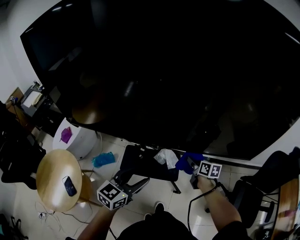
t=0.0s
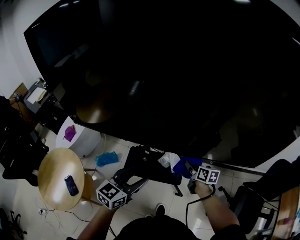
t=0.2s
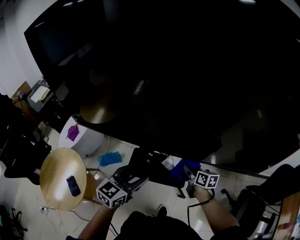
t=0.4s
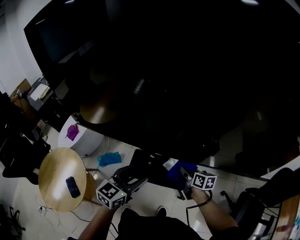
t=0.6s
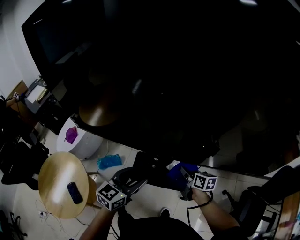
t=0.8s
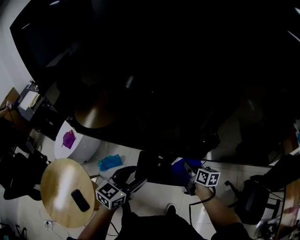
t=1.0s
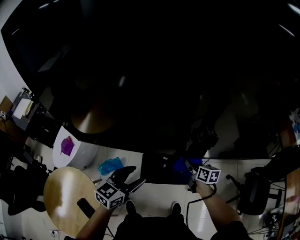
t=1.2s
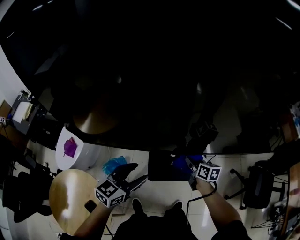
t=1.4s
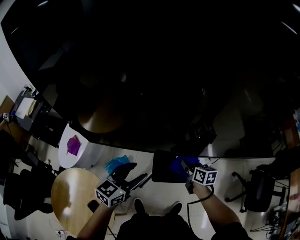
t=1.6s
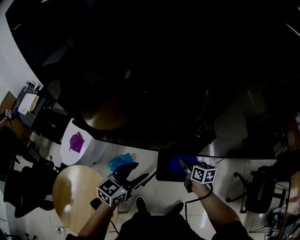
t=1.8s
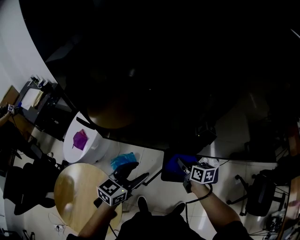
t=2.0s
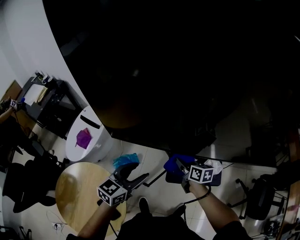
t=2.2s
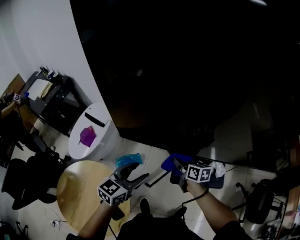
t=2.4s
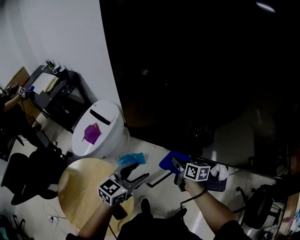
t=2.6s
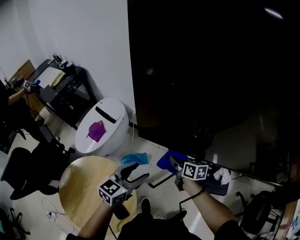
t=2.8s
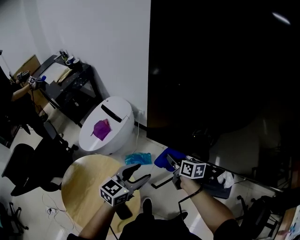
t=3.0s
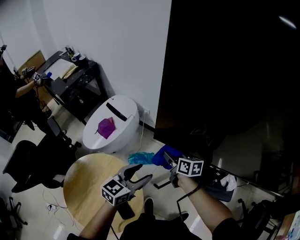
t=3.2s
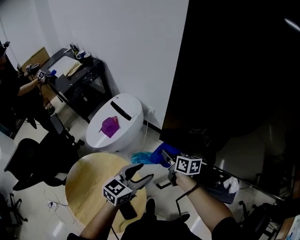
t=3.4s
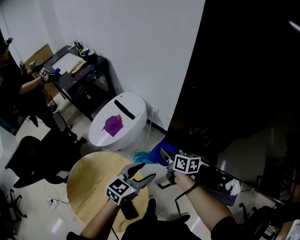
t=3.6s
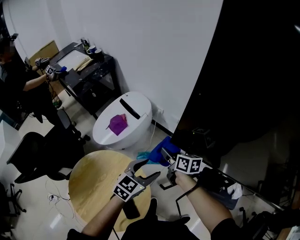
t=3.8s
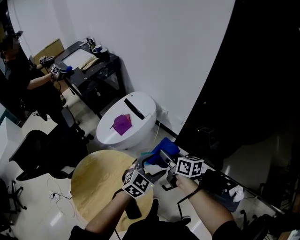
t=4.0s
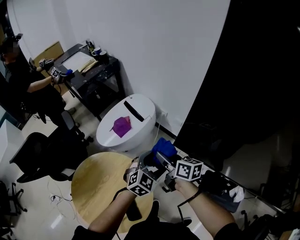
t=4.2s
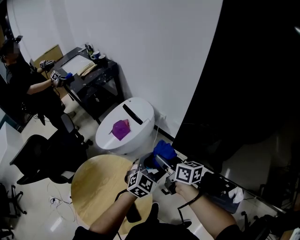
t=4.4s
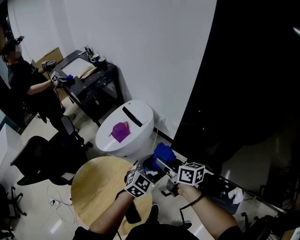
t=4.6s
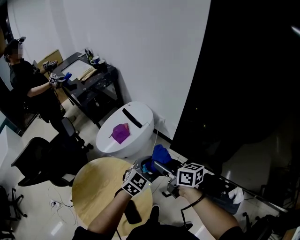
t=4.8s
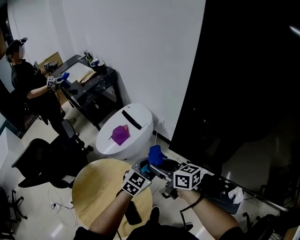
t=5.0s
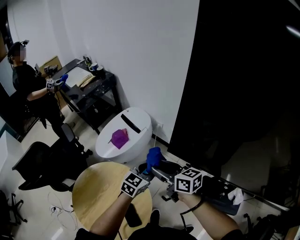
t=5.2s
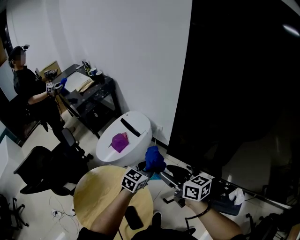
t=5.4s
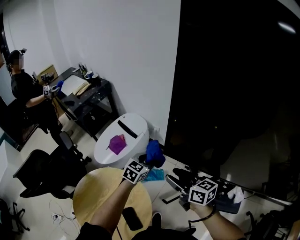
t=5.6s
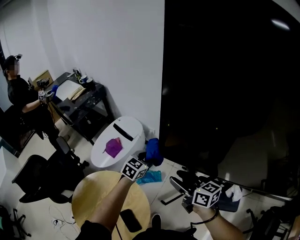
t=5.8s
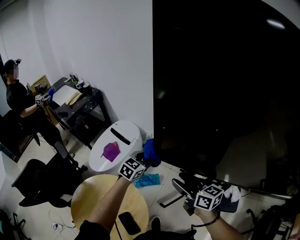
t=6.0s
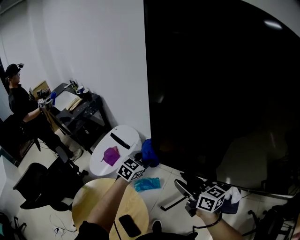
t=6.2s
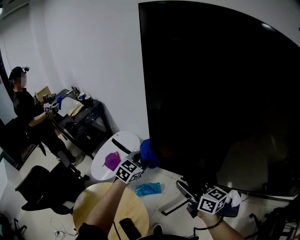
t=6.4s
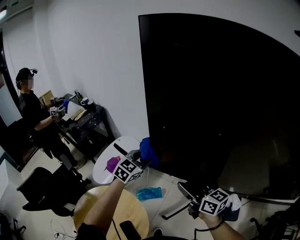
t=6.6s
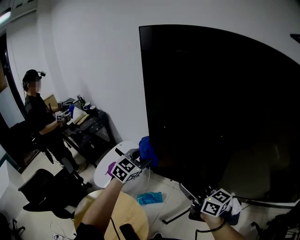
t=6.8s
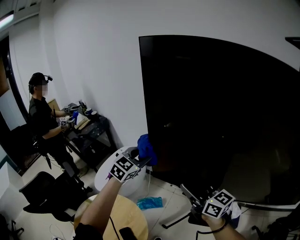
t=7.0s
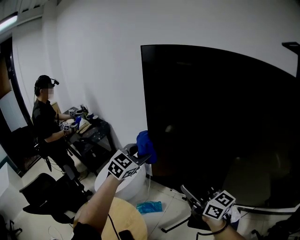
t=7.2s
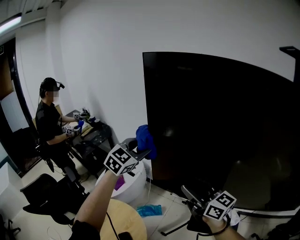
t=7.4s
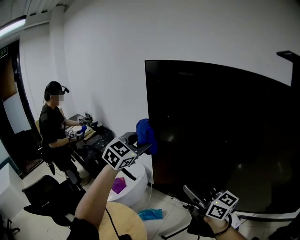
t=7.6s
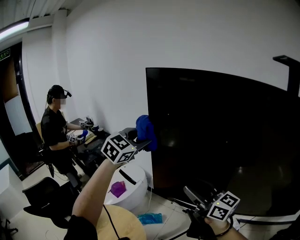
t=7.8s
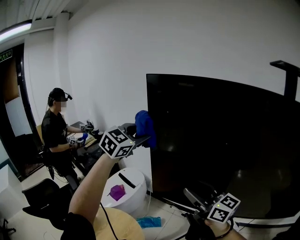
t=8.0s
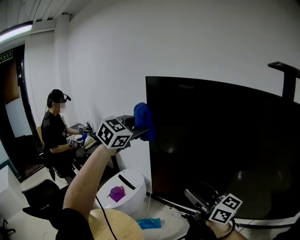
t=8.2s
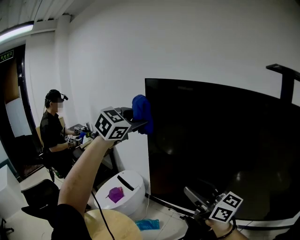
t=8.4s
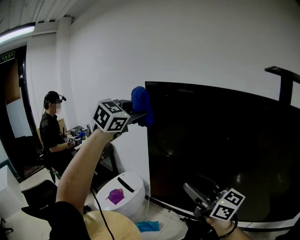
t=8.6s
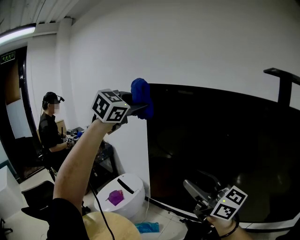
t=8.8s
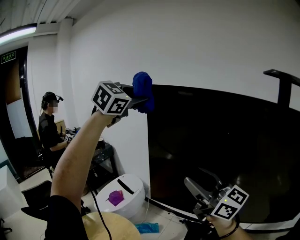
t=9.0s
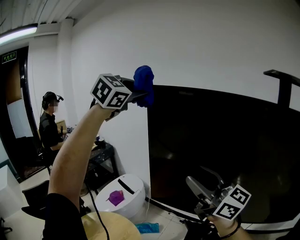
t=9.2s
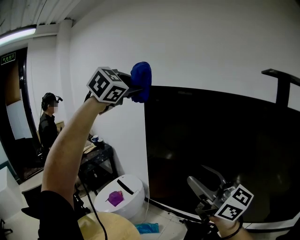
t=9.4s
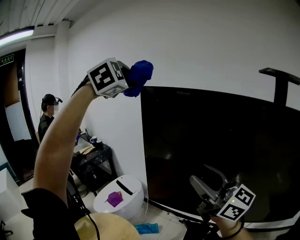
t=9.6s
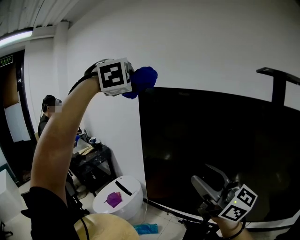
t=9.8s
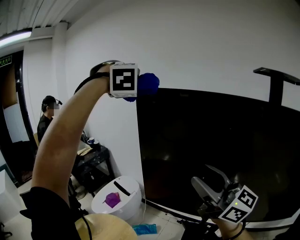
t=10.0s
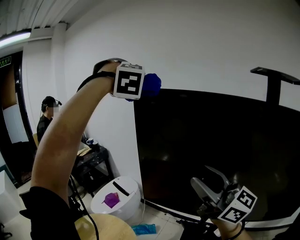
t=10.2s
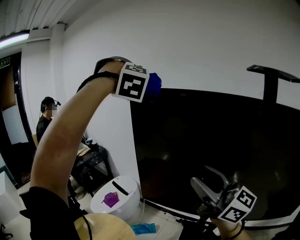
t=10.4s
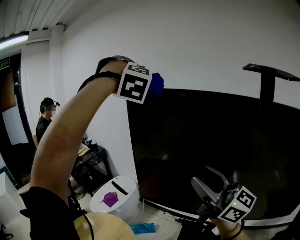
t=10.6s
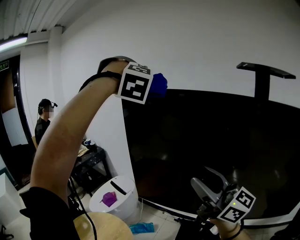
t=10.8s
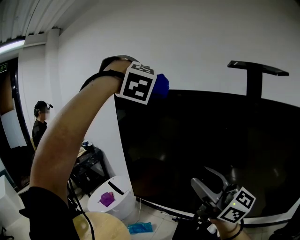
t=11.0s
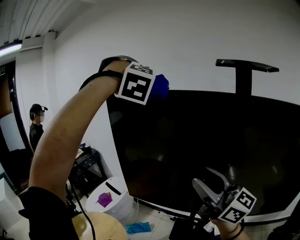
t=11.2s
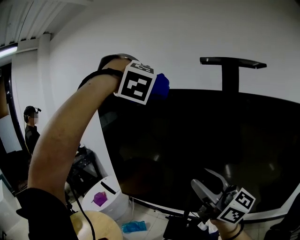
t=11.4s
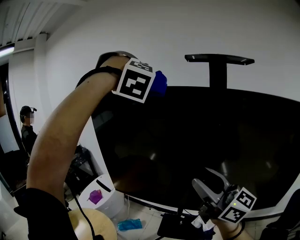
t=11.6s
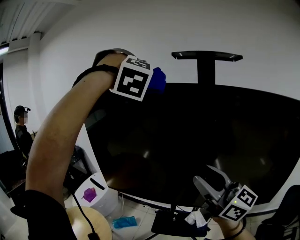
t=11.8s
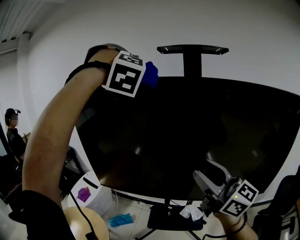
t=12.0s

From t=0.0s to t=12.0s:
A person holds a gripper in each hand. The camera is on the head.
From t=0.0s to t=1.6s: Both grippers travel together to the left, some 30 cm.
From t=1.6s to t=3.0s: Both grippers travel together to the left, some 30 cm. The right gripper turns by roughly 20 degrees.
From t=3.0s to t=4.4s: The right gripper shifts some 20 cm to the left, and turns by approximately 20 degrees; the left gripper moves forward, roughly 10 cm, and rotates approximately 30 degrees.
From t=4.4s to t=6.0s: The right gripper is displaced to the right, backward and upward by about 20 cm, while the left gripper goes approximately 10 cm forward, and closes.
From t=6.0s to t=7.6s: The right gripper travels upward by roughly 20 cm, and rotates about 30 degrees; the left gripper shifts about 35 cm upward, and swivels some 30 degrees.
From t=7.6s to t=9.0s: The left gripper shifts roughly 25 cm upward. Meanwhile the right gripper shifts some 15 cm upward.
From t=9.0s to t=10.4s: The left gripper moves to the right, approximately 5 cm, and rotates around the line of its fingers by roughly 60 degrees, clockwise from behind. The right gripper goes roughly 5 cm backward.
From t=10.4s to t=12.0s: Both grippers travel together backward and to the right, roughly 30 cm.

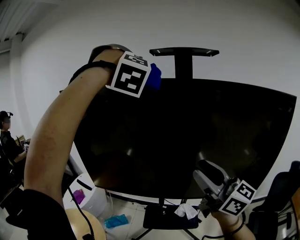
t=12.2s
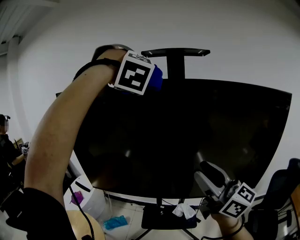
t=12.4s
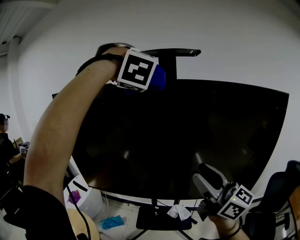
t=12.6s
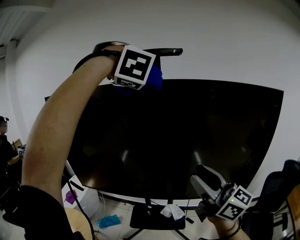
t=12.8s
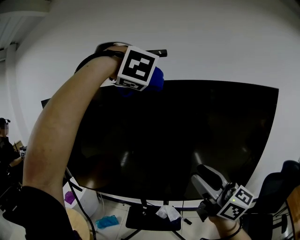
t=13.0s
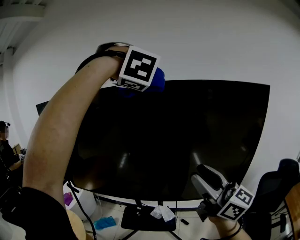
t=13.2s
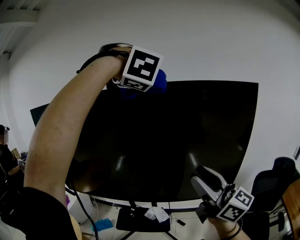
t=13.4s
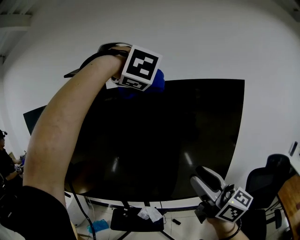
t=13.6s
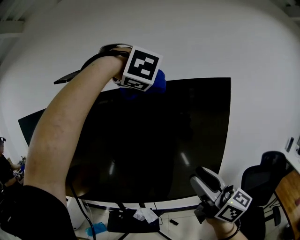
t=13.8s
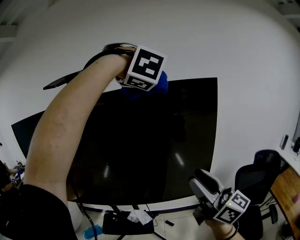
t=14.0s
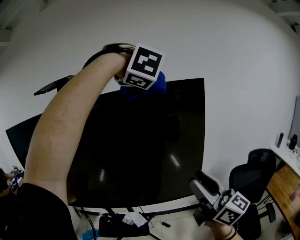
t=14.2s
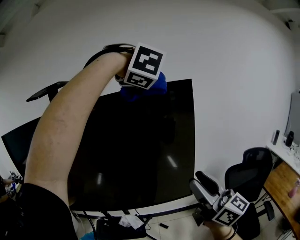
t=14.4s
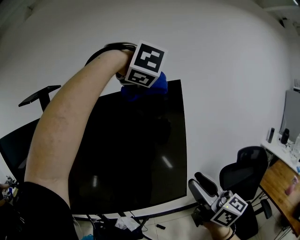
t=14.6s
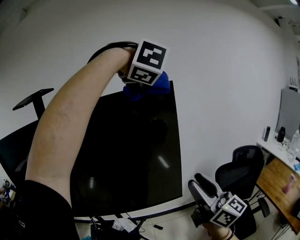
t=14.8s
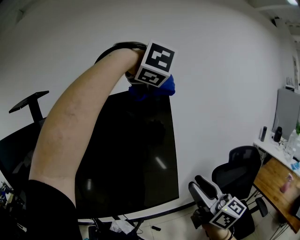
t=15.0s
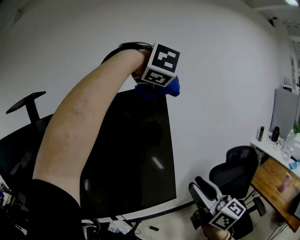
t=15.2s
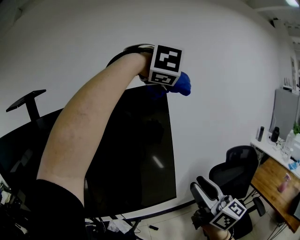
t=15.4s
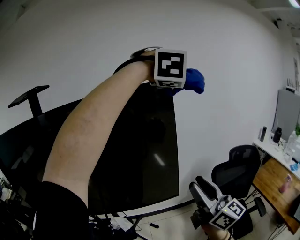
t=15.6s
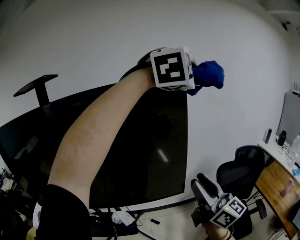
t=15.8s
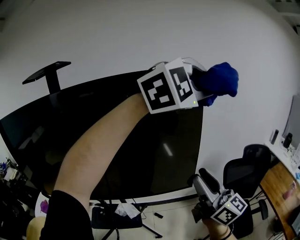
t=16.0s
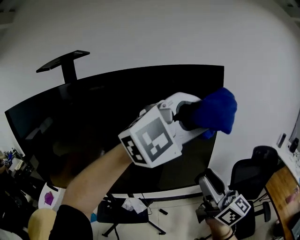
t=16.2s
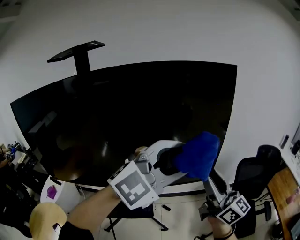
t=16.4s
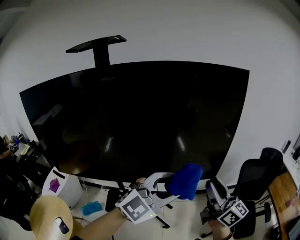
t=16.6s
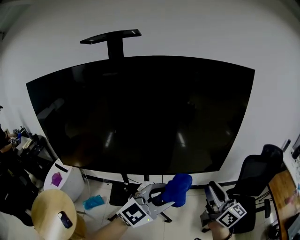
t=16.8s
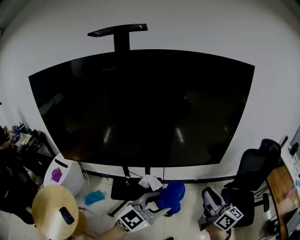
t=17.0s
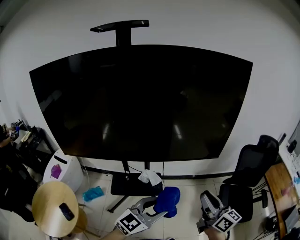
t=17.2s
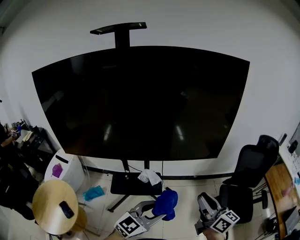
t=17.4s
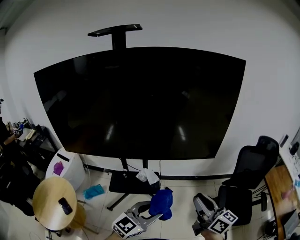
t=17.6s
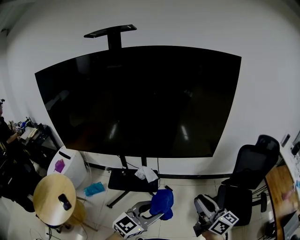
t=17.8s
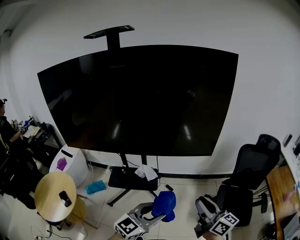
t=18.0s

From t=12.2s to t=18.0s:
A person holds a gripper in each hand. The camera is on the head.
From t=12.2s to t=13.6s: Both grippers travel together to the right and backward, approximately 35 cm.
From t=13.6s to t=15.0s: The left gripper heads to the right, covering about 35 cm. The right gripper goes some 25 cm to the right and backward, and turns by some 20 degrees.
From t=15.0s to t=16.6s: The left gripper moves some 50 cm, and points its fingers some 40 degrees further upward. Meanwhile the right gripper ends up approximately 20 cm from where it was.
From t=16.6s to t=18.0s: The left gripper moves downward and backward, approximately 25 cm, and rotates about 40 degrees; the right gripper is displaced backward and downward by approximately 20 cm, and rotates about 20 degrees.

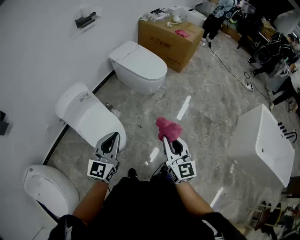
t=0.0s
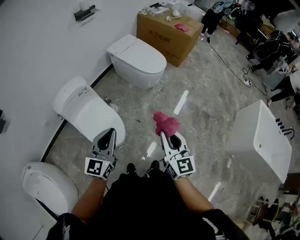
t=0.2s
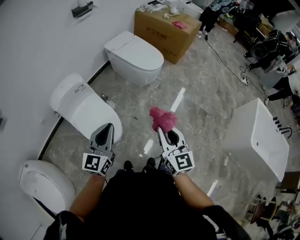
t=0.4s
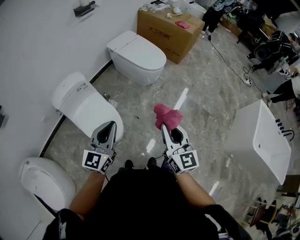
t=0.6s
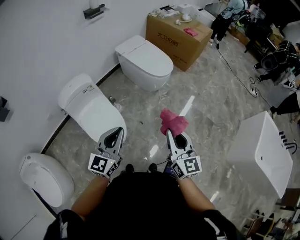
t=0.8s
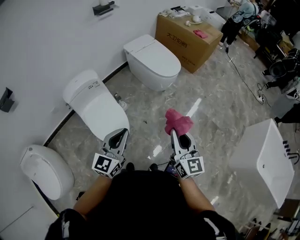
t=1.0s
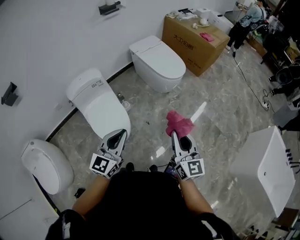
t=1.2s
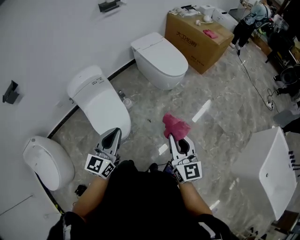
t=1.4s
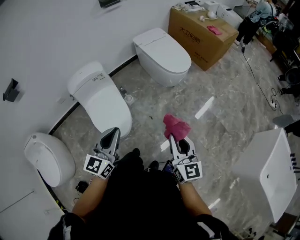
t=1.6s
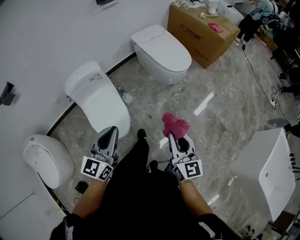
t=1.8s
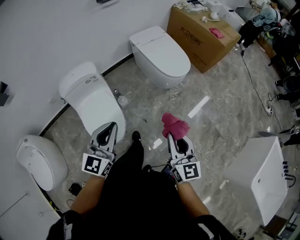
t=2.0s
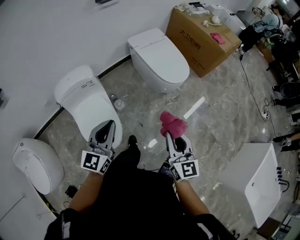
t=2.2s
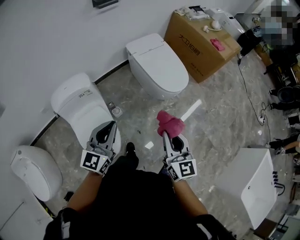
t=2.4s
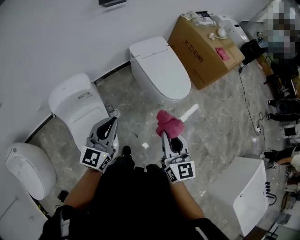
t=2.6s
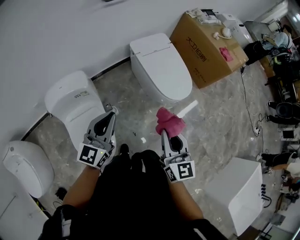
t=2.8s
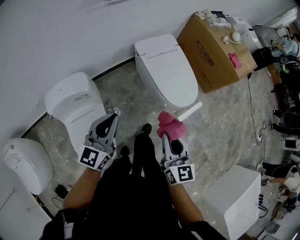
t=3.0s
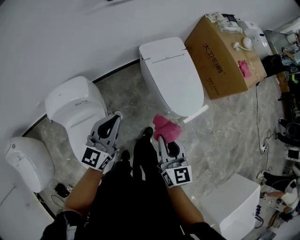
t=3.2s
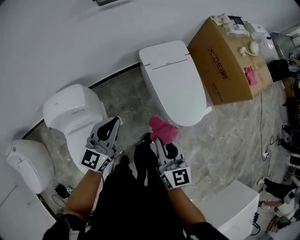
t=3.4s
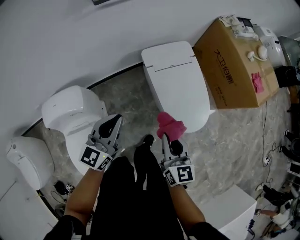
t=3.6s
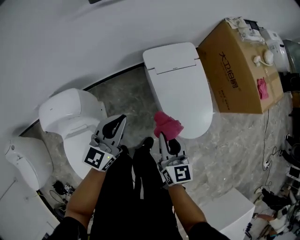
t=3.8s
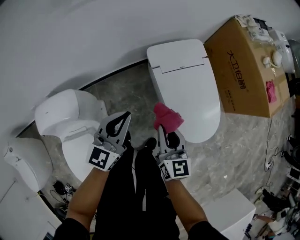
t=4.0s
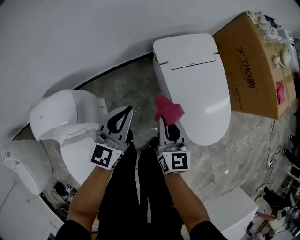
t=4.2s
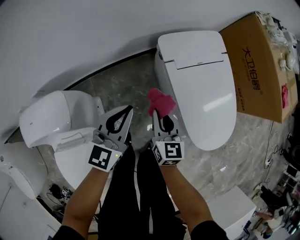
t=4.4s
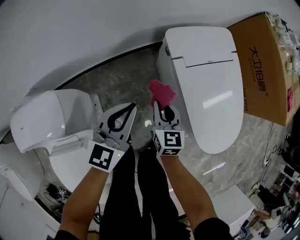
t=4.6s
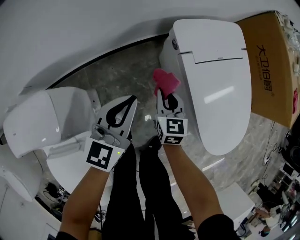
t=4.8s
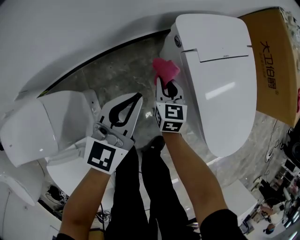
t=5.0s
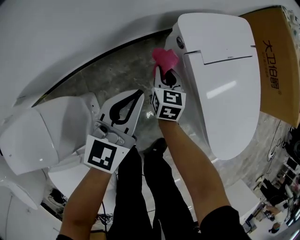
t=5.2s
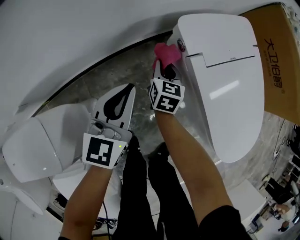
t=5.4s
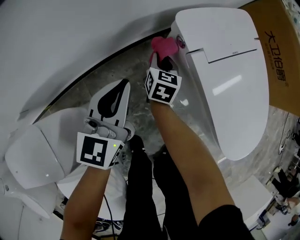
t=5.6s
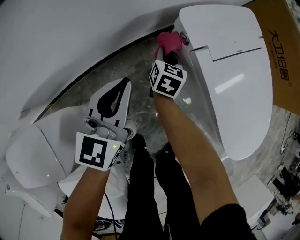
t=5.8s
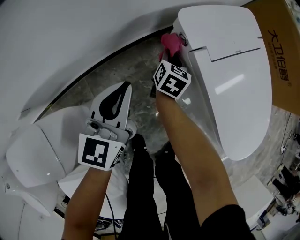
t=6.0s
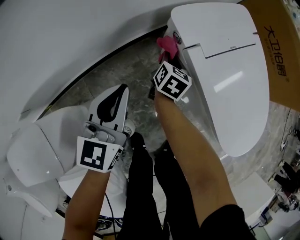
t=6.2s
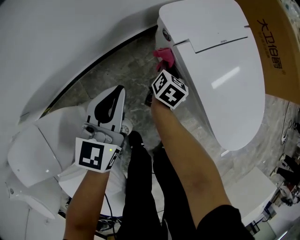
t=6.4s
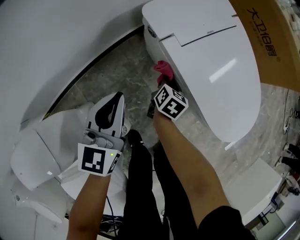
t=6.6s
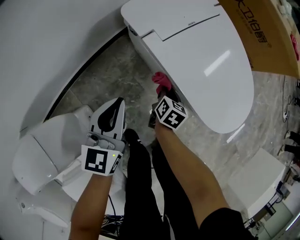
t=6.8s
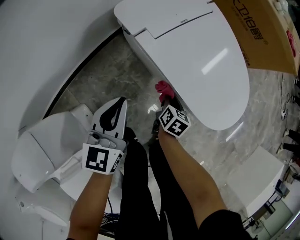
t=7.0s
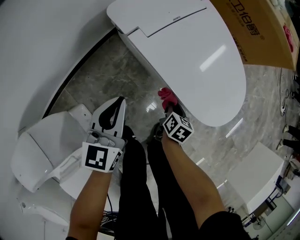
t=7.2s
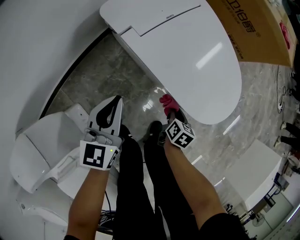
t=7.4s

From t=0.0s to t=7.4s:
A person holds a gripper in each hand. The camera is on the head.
From t=0.0s to t=1.4s: The right gripper shifts by some 5 cm.
From t=1.4s to t=3.0s: The grippers both shift forward by some 40 cm.
From t=3.0s to t=4.4s: Both grippers travel together forward and downward, some 40 cm.
From t=4.4s to t=6.0s: The left gripper moves downward, forward and to the left, about 20 cm, while the right gripper shifts about 30 cm downward and forward, and rotates about 30 degrees.
From t=6.0s to t=7.4s: The right gripper moves to the right and backward, about 40 cm, and swivels about 30 degrees. The left gripper travels to the right by about 15 cm.
